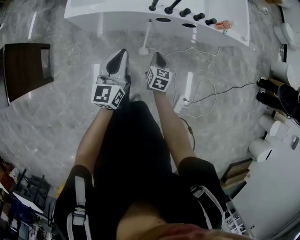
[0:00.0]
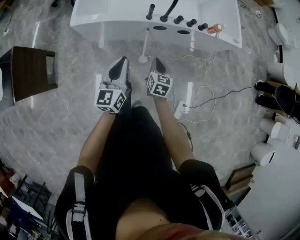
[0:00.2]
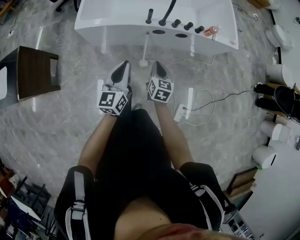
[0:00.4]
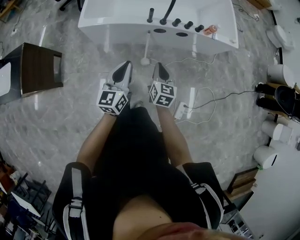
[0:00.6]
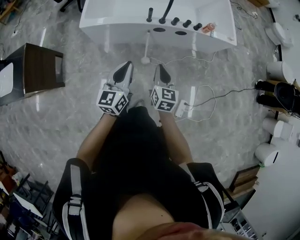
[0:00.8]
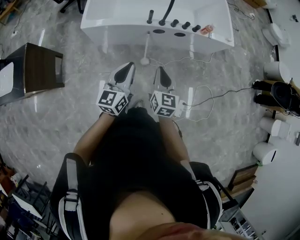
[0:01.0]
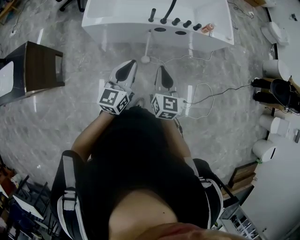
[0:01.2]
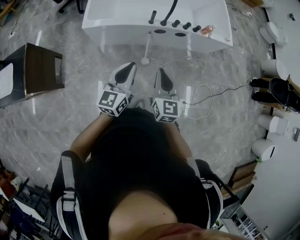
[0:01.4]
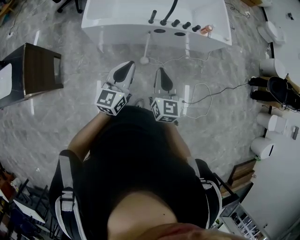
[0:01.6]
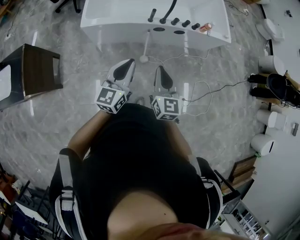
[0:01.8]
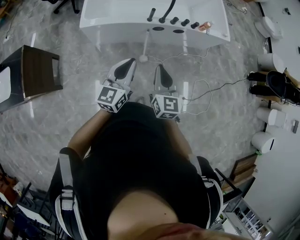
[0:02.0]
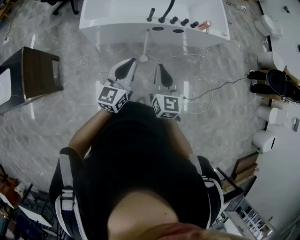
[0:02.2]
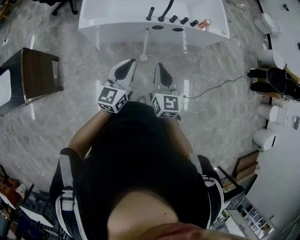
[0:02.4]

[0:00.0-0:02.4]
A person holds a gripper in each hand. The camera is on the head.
0:00.0 to 0:01.2: The right gripper shifts some 35 cm upward and backward, and rotates roughly 20 degrees. The left gripper goes approximately 20 cm upward and backward.
0:01.2 to 0:02.4: The right gripper ends up approximately 5 cm from where it was.

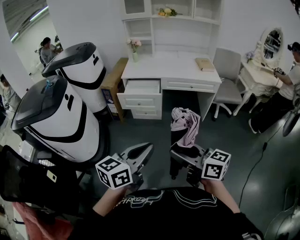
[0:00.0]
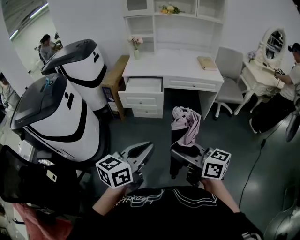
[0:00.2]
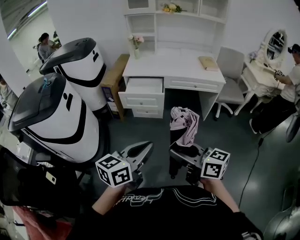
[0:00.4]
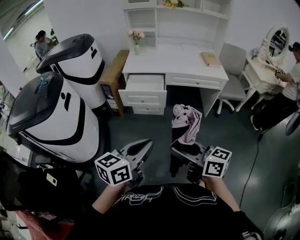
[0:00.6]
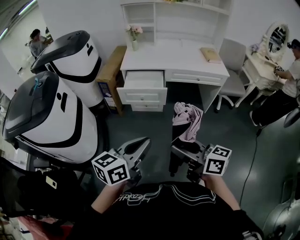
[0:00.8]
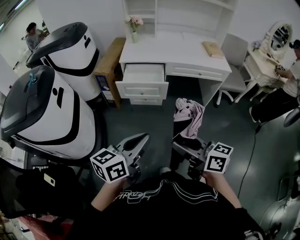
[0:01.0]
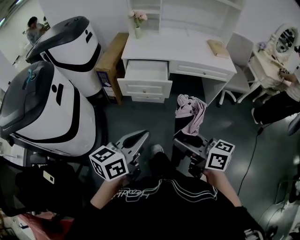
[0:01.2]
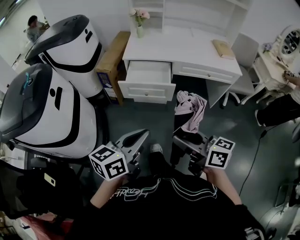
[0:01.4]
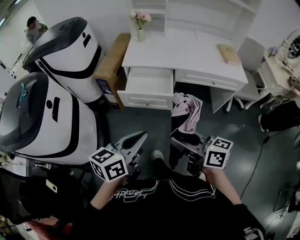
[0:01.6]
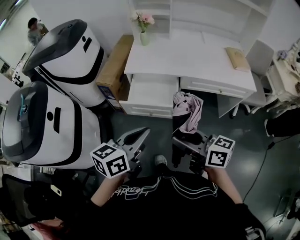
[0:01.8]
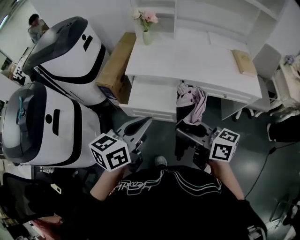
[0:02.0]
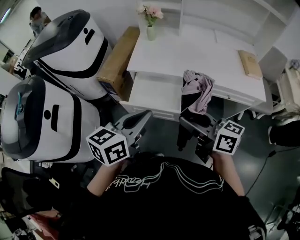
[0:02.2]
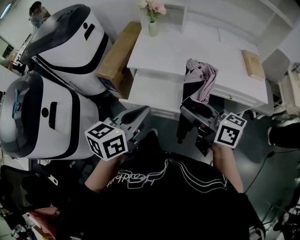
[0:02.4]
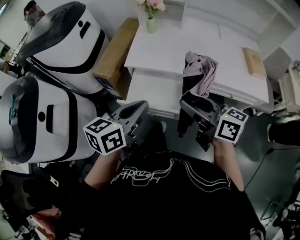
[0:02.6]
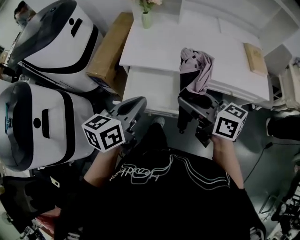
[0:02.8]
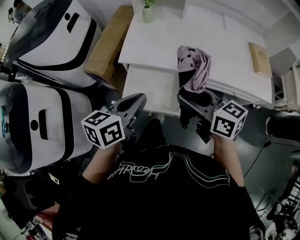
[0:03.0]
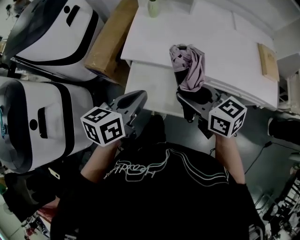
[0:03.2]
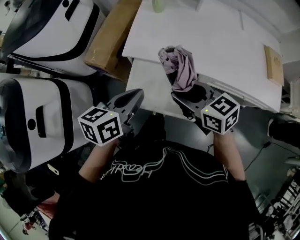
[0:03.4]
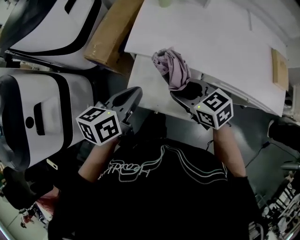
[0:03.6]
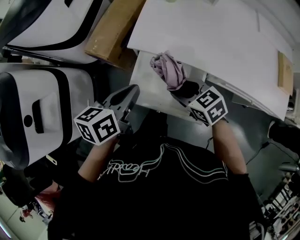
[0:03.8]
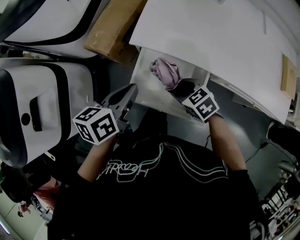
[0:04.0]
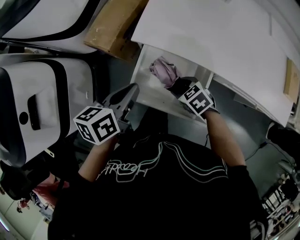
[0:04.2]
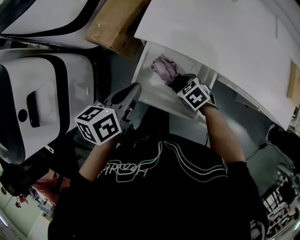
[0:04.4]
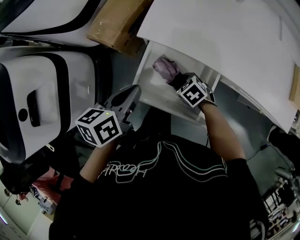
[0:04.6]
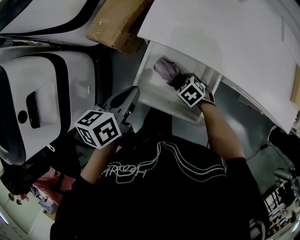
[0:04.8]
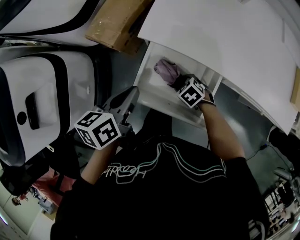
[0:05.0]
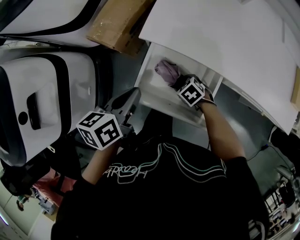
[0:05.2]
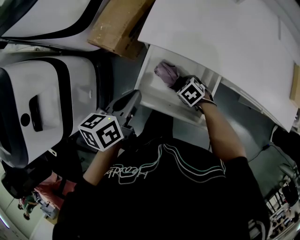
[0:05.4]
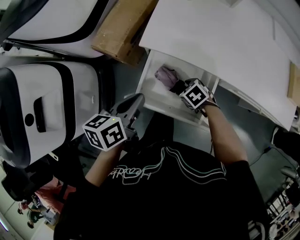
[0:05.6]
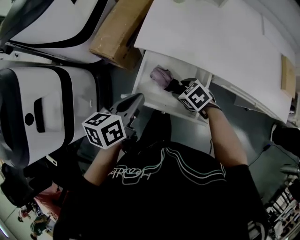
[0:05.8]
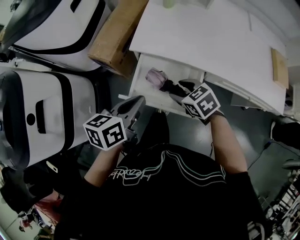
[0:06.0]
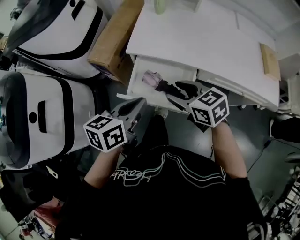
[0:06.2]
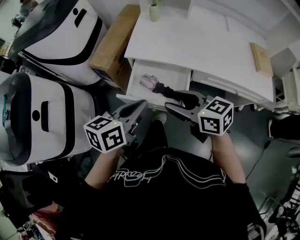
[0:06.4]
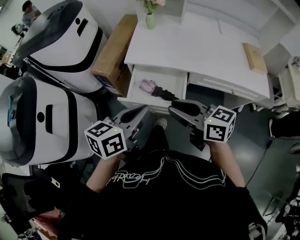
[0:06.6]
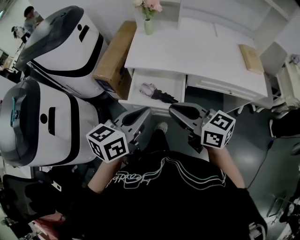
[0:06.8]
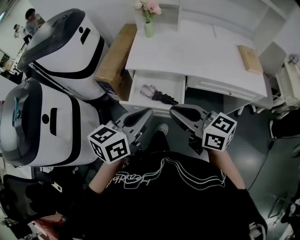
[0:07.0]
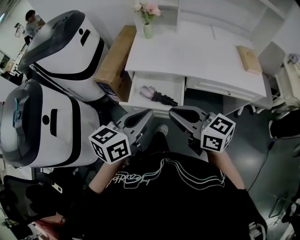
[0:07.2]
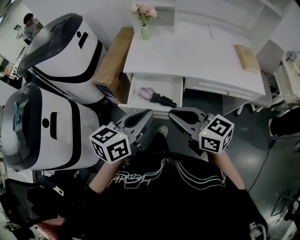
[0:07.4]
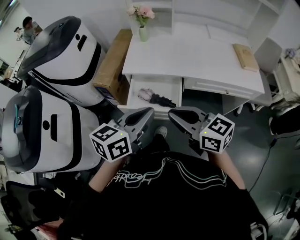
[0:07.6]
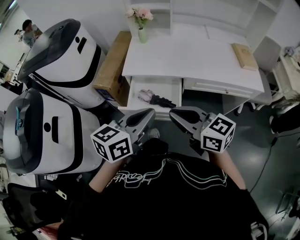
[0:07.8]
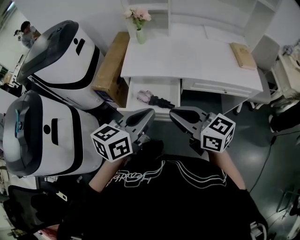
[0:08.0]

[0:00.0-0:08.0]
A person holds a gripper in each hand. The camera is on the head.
0:00.0 to 0:01.6: Both grippers travel together forward, roughly 35 cm.
0:01.6 to 0:03.2: The pair of grippers is taken forward, approximately 40 cm. The right gripper turns by approximately 30 degrees.
0:03.2 to 0:04.8: The left gripper travels downward, to the left and forward by approximately 20 cm, and turns by approximately 20 degrees. Meanwhile the right gripper travels downward by roughly 35 cm, and points its fingers approximately 50 degrees further downward.
0:04.8 to 0:06.4: The left gripper travels backward and upward by roughly 20 cm, and rotates about 30 degrees; the right gripper is displaced upward by some 35 cm, and tips its fingers upward by about 50 degrees.
0:06.4 to 0:08.0: The right gripper goes about 15 cm backward and upward, and closes; the left gripper travels upward, backward and to the right by some 15 cm.

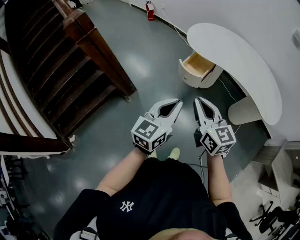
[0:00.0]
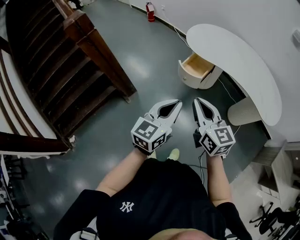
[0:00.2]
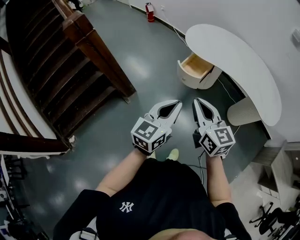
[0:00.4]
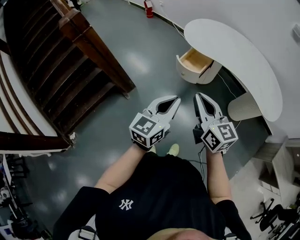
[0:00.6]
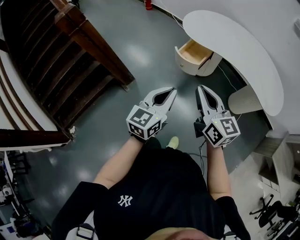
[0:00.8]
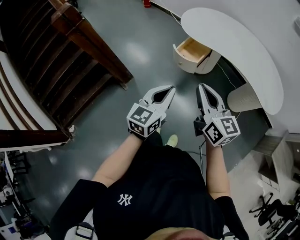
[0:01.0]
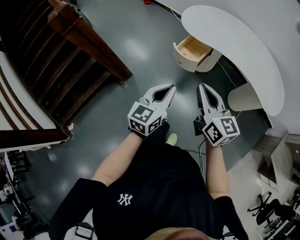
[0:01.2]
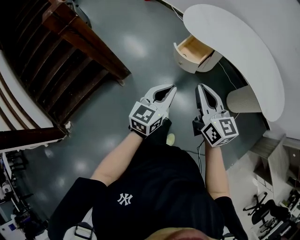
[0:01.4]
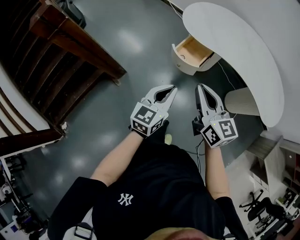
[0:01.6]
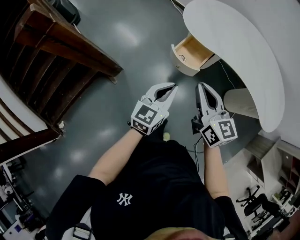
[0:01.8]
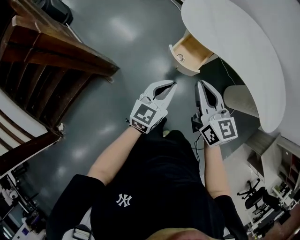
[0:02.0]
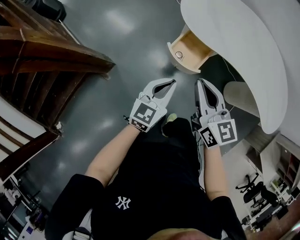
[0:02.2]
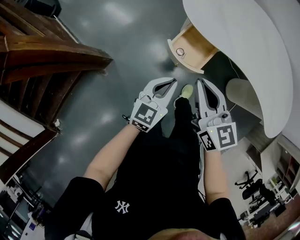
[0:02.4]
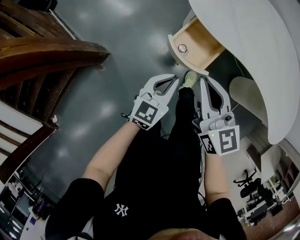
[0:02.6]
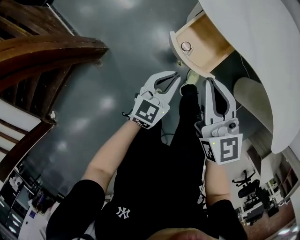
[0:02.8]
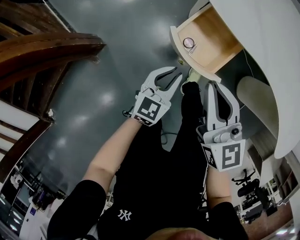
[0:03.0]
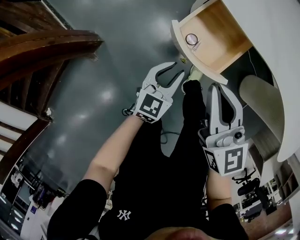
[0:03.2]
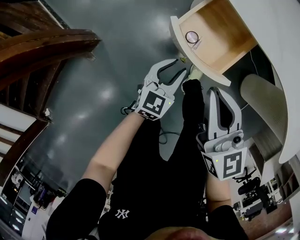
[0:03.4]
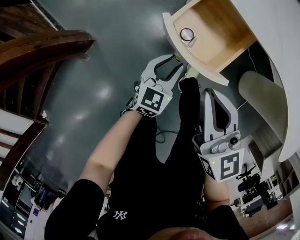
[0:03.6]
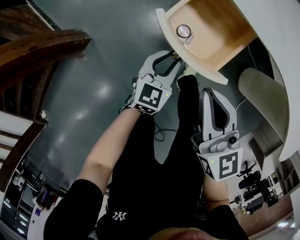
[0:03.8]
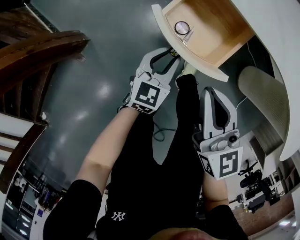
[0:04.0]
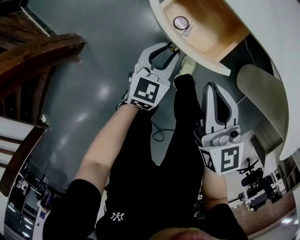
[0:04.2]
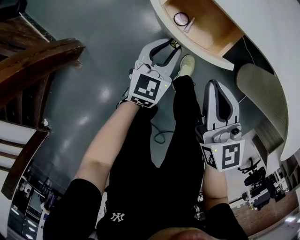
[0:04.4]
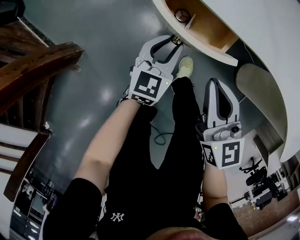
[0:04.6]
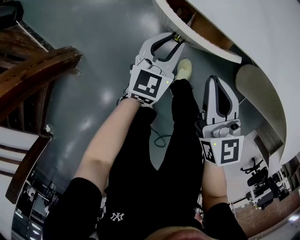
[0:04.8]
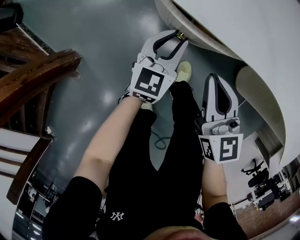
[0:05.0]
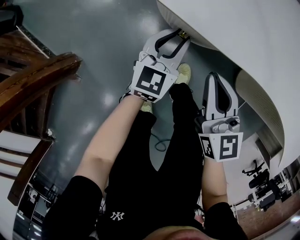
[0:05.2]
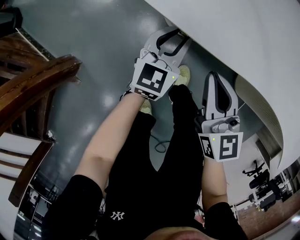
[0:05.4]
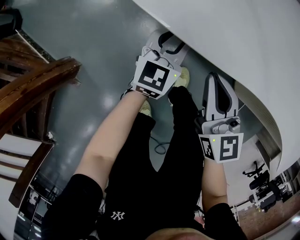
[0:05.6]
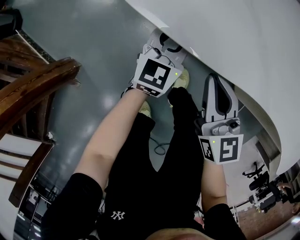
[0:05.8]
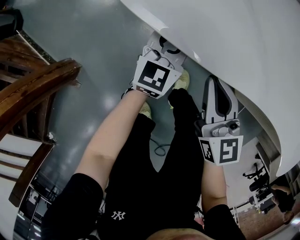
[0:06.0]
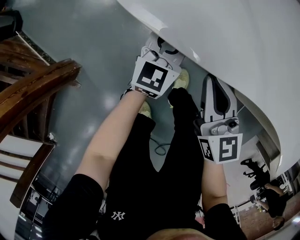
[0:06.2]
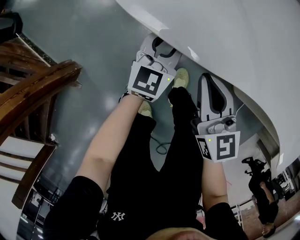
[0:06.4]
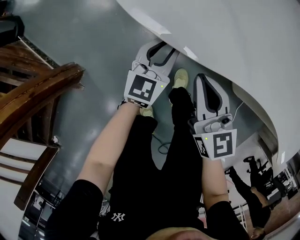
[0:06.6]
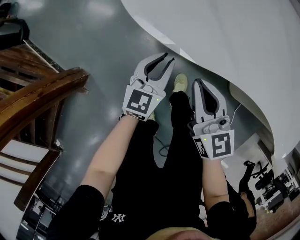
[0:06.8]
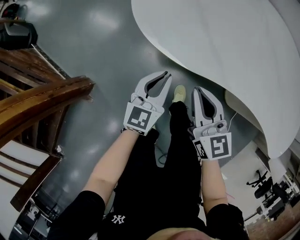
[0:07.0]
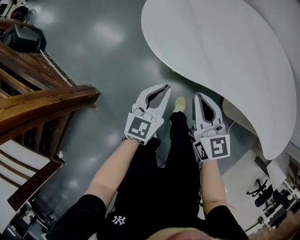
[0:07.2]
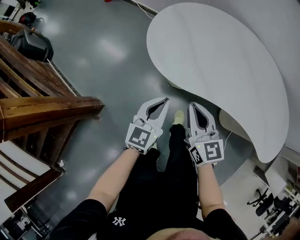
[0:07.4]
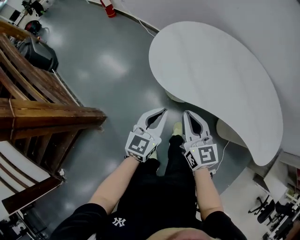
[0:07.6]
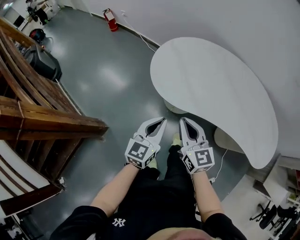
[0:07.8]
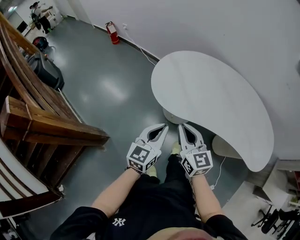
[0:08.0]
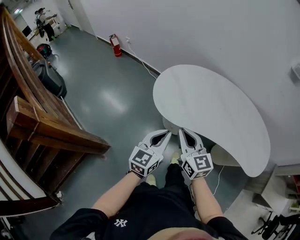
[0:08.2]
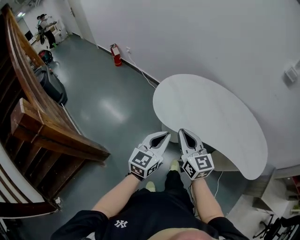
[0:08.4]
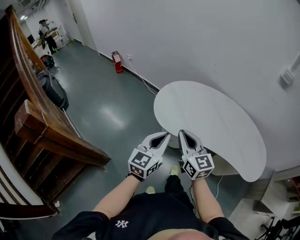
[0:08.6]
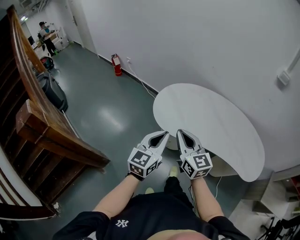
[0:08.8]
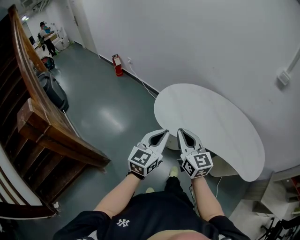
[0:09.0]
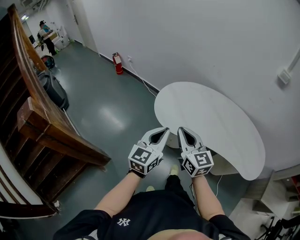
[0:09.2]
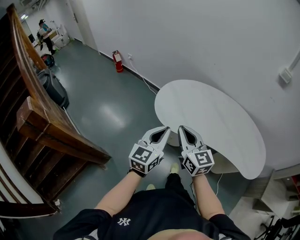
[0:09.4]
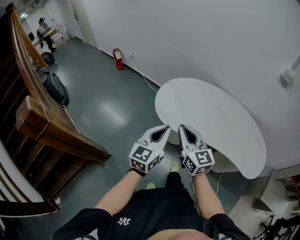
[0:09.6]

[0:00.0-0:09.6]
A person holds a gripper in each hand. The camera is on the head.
0:00.0 to 0:01.6: Both grippers move forward and downward, about 15 cm.
0:01.6 to 0:03.2: The two grippers go roughly 40 cm downward and forward. The left gripper opens up.
0:03.2 to 0:04.8: The left gripper moves forward and to the right, some 15 cm; the right gripper is displaced downward, to the right and forward by some 15 cm.
0:04.8 to 0:06.4: The two grippers go approximately 5 cm forward.
0:06.4 to 0:08.0: The right gripper shifts roughly 35 cm upward, while the left gripper heads upward and backward, covering about 40 cm, and closes its fingers.
0:08.0 to 0:09.6: The two grippers go approximately 15 cm upward.

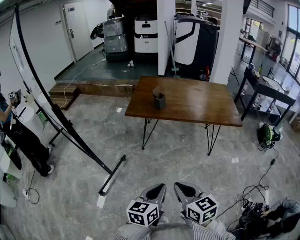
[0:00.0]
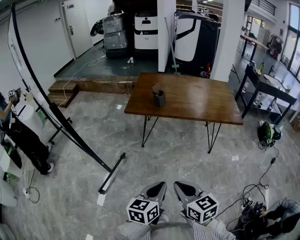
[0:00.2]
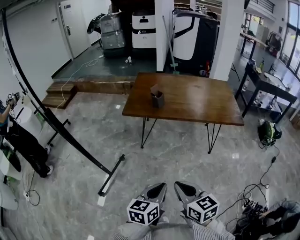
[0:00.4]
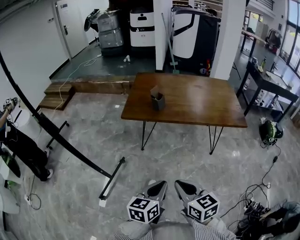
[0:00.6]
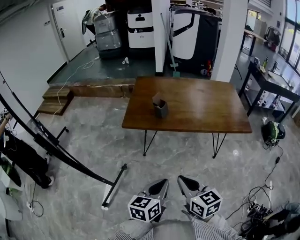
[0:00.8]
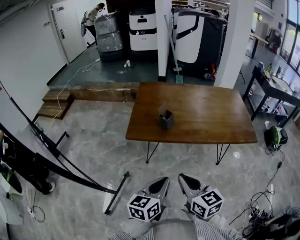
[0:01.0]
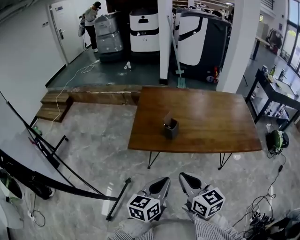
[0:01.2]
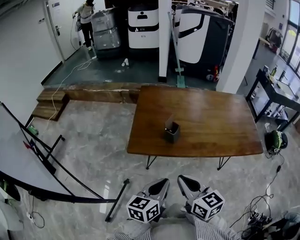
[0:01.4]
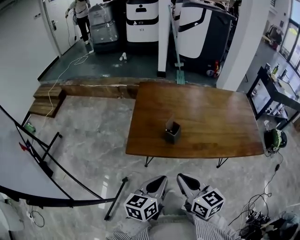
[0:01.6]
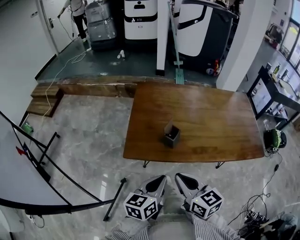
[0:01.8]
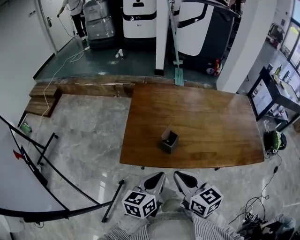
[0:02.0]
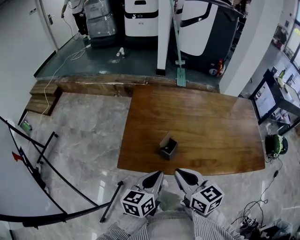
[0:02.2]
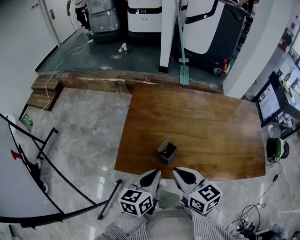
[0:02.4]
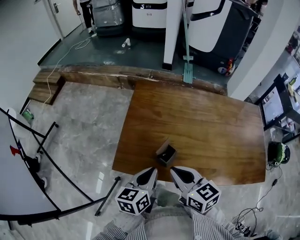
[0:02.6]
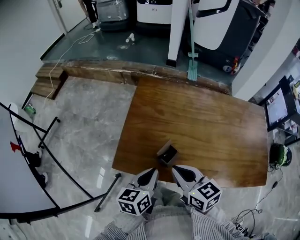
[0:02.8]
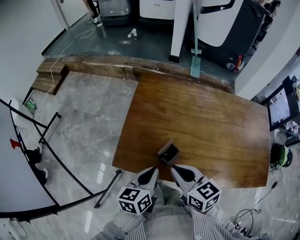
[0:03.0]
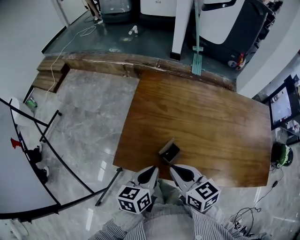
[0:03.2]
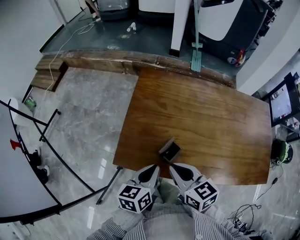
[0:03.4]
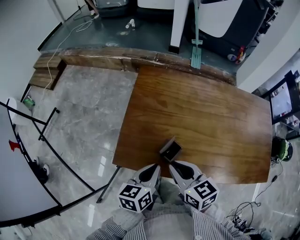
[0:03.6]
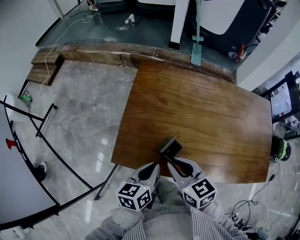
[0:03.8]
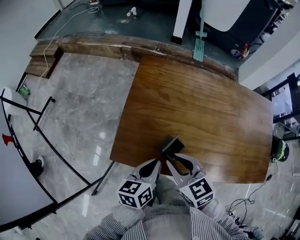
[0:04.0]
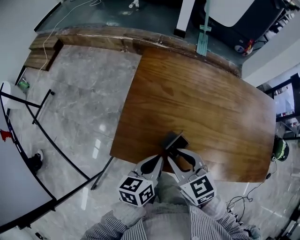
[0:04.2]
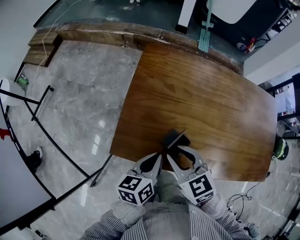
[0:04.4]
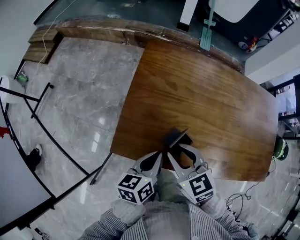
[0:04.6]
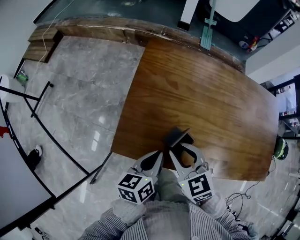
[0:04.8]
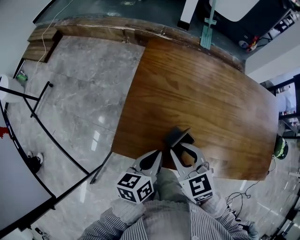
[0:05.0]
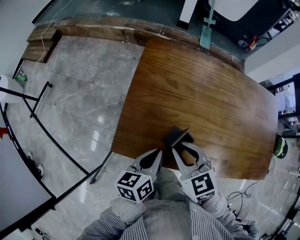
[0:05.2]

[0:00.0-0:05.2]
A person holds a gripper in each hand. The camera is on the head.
0:00.0 to 0:01.8: The pair of grippers is taken forward, roughly 50 cm.
0:01.8 to 0:03.4: The two grippers go roughly 15 cm forward.
0:03.4 to 0:05.2: The left gripper changes place by approximately 5 cm; the right gripper changes place by approximately 5 cm, and rotates about 30 degrees.
